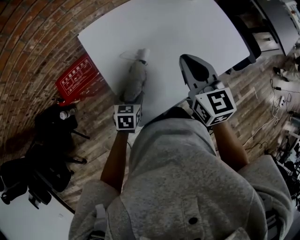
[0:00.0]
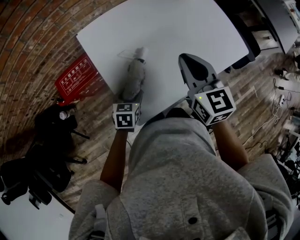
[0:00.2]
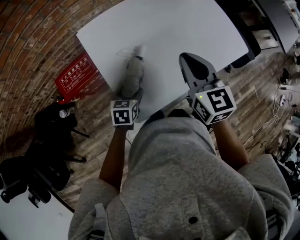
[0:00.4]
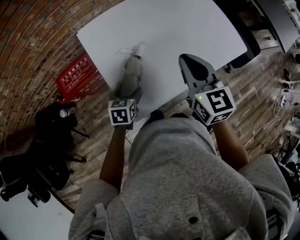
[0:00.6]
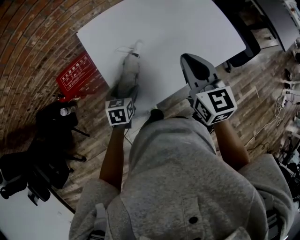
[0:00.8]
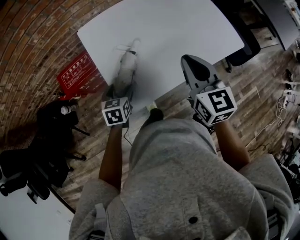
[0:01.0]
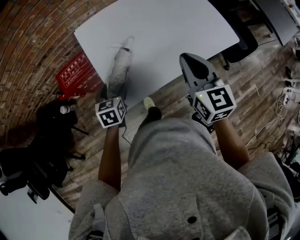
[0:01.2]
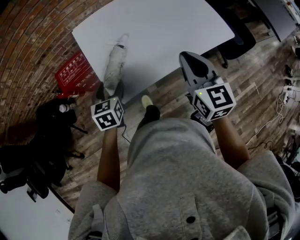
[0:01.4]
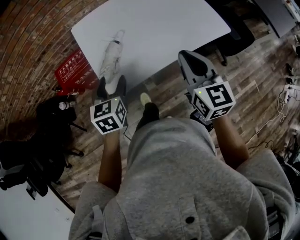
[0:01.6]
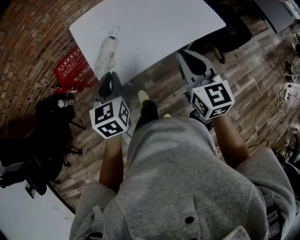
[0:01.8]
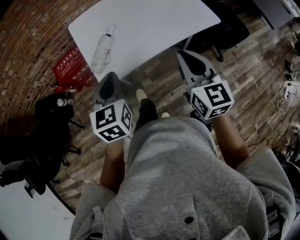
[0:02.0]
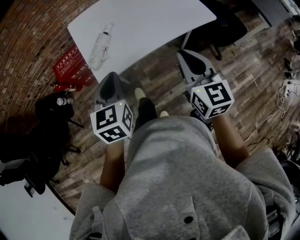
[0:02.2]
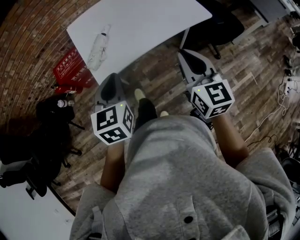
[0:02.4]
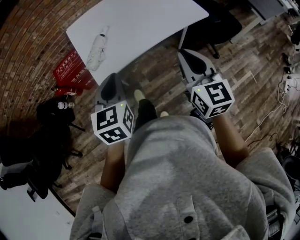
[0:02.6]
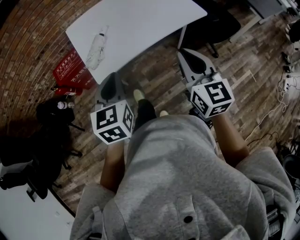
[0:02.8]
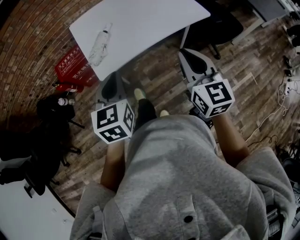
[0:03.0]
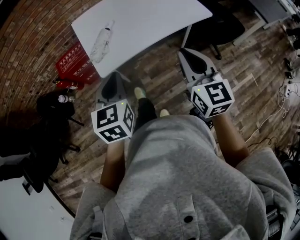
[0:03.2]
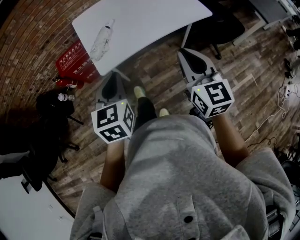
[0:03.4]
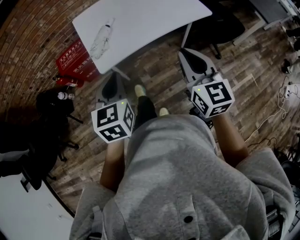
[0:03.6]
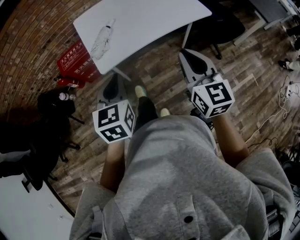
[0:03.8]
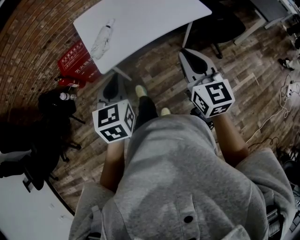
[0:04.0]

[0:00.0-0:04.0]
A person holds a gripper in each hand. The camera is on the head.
0:00.0 to 0:01.4: The left gripper moves upward and backward, some 15 cm, and turns by approximately 20 degrees. Meanwhile the right gripper shifts about 15 cm backward and to the right.
0:01.4 to 0:02.6: The right gripper goes about 20 cm backward and to the right; the left gripper heads backward, upward and to the right, covering approximately 25 cm, and closes up.
0:02.6 to 0:04.0: The right gripper moves some 5 cm; the left gripper moves backward, roughly 5 cm.

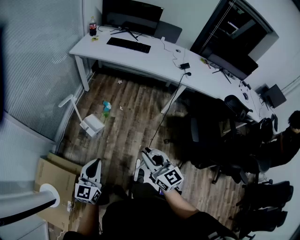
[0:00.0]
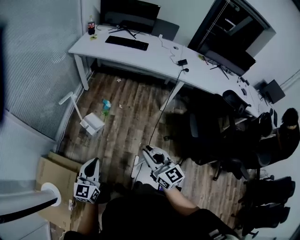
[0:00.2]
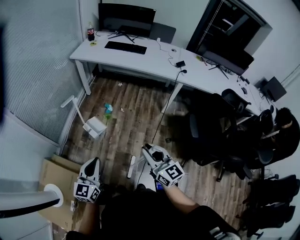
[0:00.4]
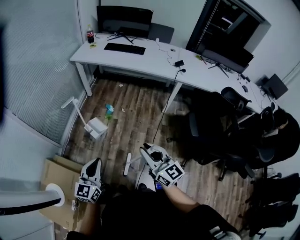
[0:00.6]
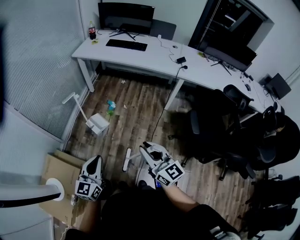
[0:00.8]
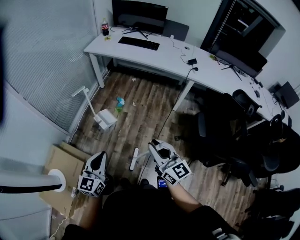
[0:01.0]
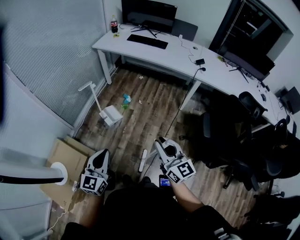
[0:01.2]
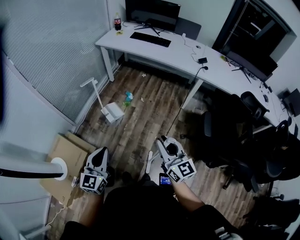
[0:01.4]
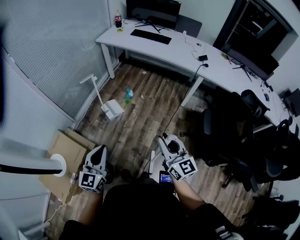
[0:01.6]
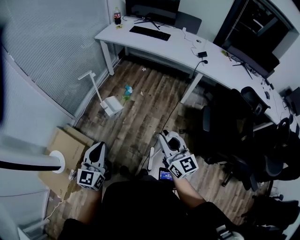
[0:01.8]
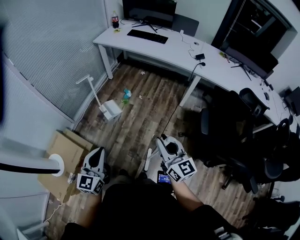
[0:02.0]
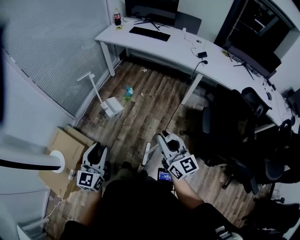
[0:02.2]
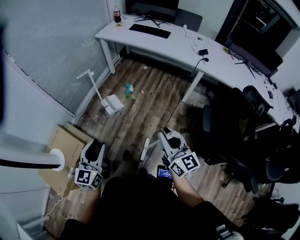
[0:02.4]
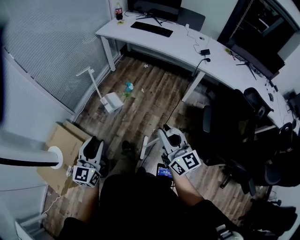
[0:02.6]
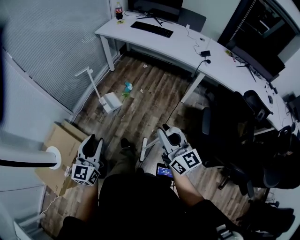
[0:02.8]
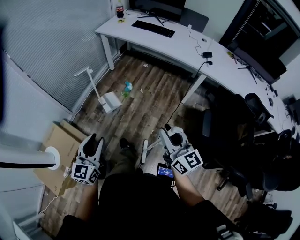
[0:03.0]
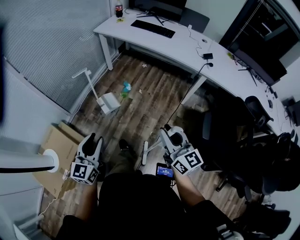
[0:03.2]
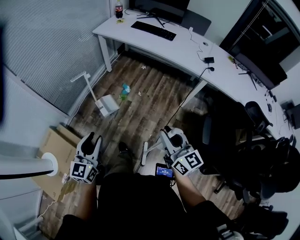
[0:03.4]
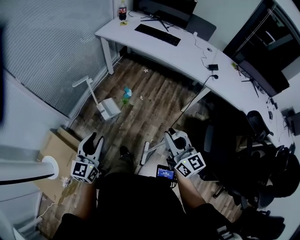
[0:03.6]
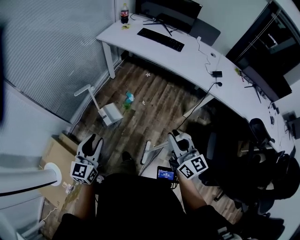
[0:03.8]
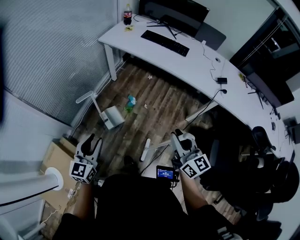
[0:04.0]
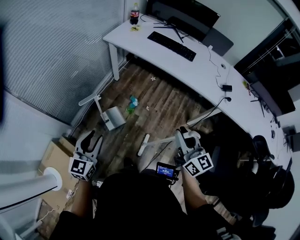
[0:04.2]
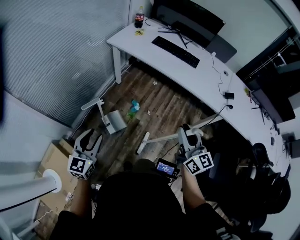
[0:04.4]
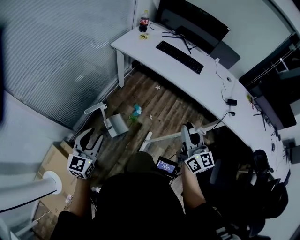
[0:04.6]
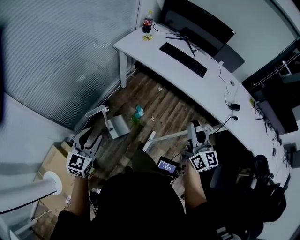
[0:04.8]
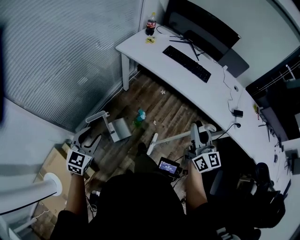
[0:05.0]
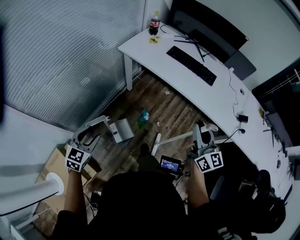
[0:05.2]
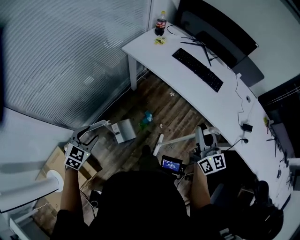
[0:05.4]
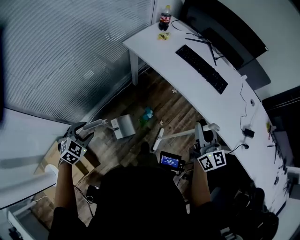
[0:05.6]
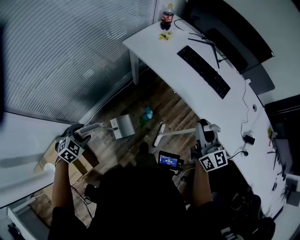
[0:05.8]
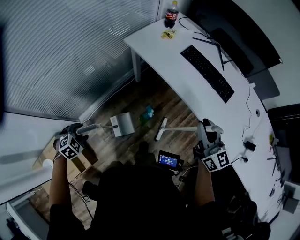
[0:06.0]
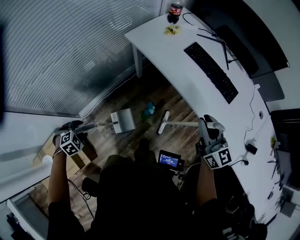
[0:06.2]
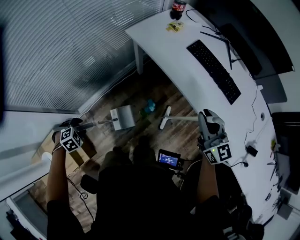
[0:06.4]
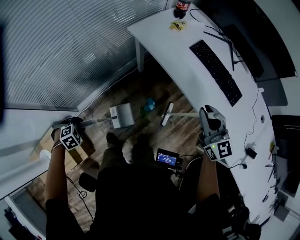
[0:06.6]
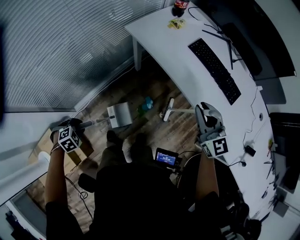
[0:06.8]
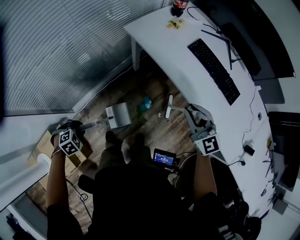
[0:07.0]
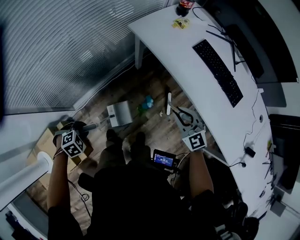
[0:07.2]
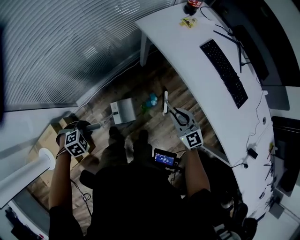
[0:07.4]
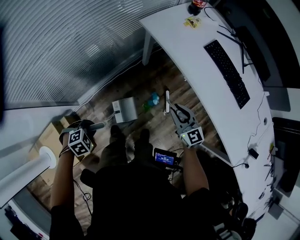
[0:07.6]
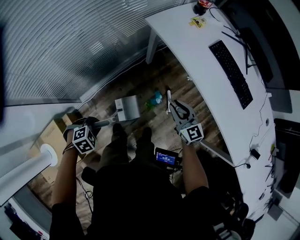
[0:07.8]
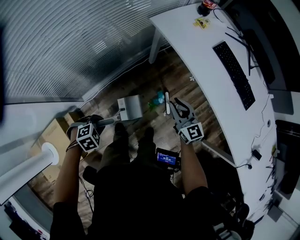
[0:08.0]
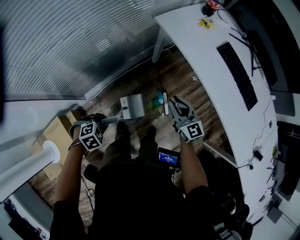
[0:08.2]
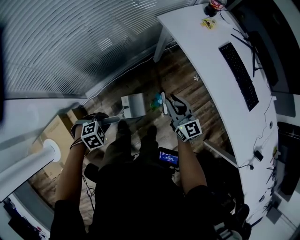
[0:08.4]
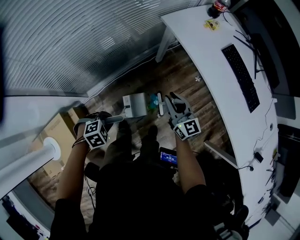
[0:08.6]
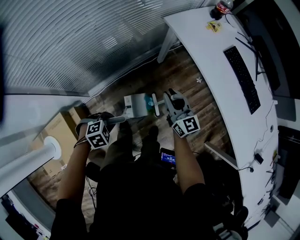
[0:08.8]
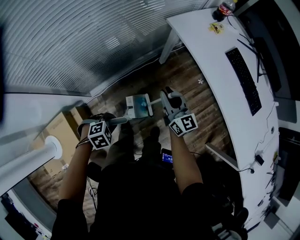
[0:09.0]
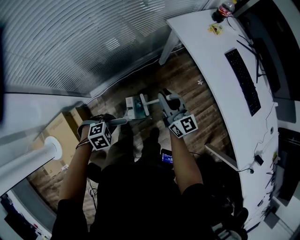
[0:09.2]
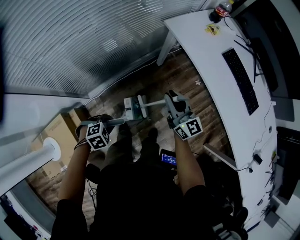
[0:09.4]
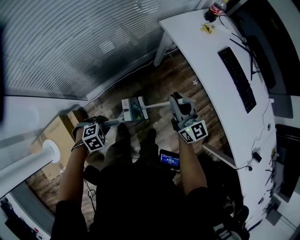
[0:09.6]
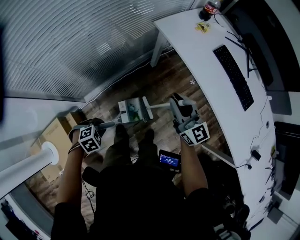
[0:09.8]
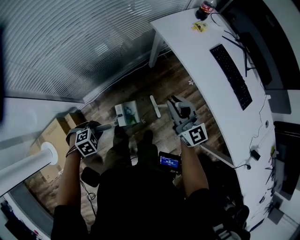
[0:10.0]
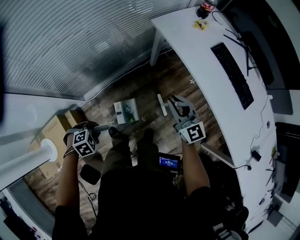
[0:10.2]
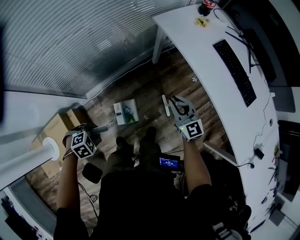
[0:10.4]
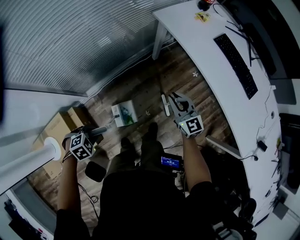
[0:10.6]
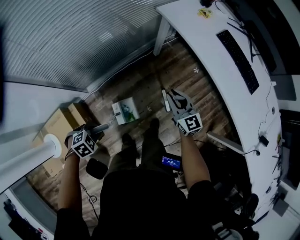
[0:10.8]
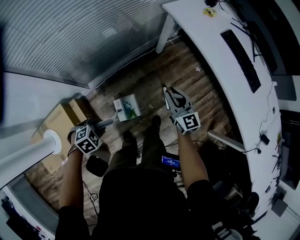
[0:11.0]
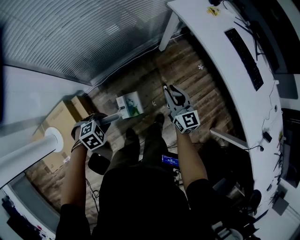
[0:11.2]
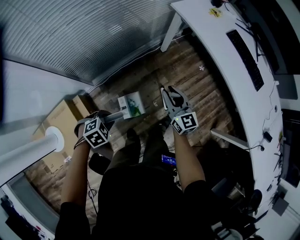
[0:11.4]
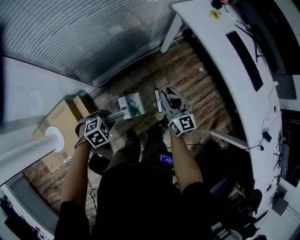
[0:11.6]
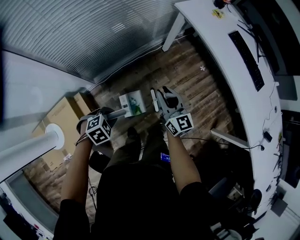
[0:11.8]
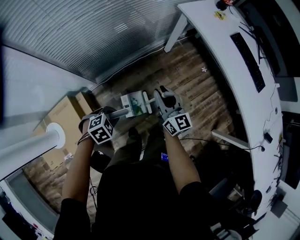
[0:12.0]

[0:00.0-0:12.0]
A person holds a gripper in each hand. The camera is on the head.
0:00.0 to 0:01.6: The right gripper is displaced to the right and backward by roughly 10 cm, while the left gripper goes roughly 15 cm backward and upward.
0:01.6 to 0:03.0: The right gripper travels forward by approximately 5 cm; the left gripper ends up approximately 5 cm from where it was, and opens its fingers.
0:03.0 to 0:04.4: The two grippers go approximately 35 cm forward.
0:04.4 to 0:06.0: The left gripper moves forward, downward and to the left, about 25 cm, and tips its fingers downward by about 60 degrees. The right gripper moves forward, roughly 35 cm.
0:06.0 to 0:07.6: The left gripper is displaced downward by some 5 cm, and closes up, while the right gripper goes about 20 cm downward, and swivels roughly 30 degrees.
0:07.6 to 0:09.0: The right gripper shifts by approximately 15 cm, and turns by some 20 degrees.
0:09.0 to 0:10.4: The right gripper goes upward and returns, approximately 10 cm each way, and changes its angle by some 20 degrees. The left gripper ends up about 10 cm from where it was.
0:10.4 to 0:12.0: The right gripper changes place by about 20 cm, and turns by approximately 20 degrees. The left gripper moves approximately 5 cm.

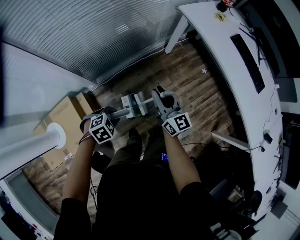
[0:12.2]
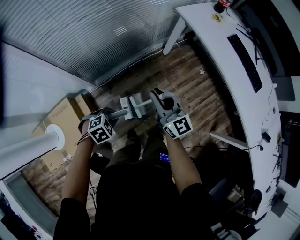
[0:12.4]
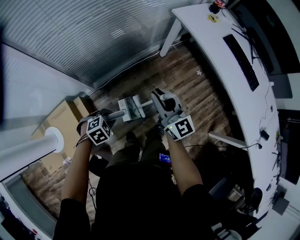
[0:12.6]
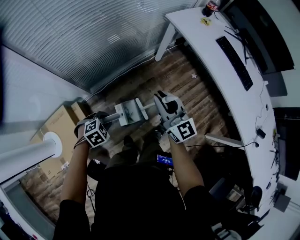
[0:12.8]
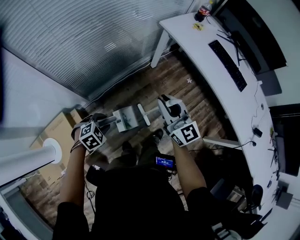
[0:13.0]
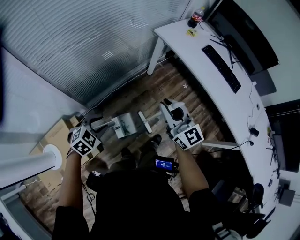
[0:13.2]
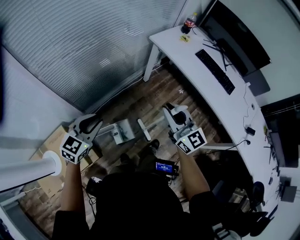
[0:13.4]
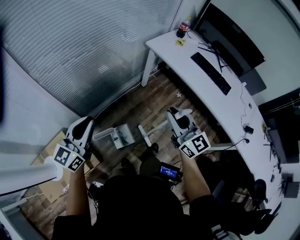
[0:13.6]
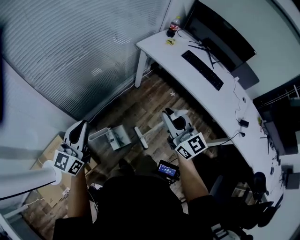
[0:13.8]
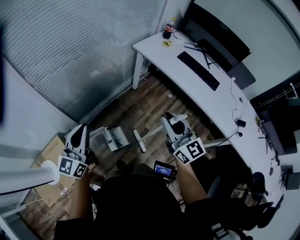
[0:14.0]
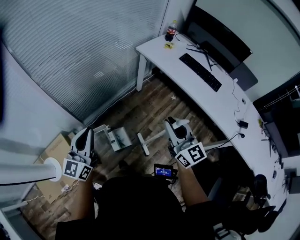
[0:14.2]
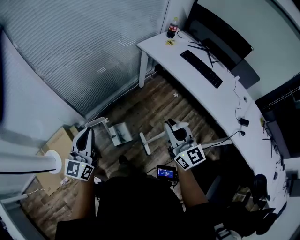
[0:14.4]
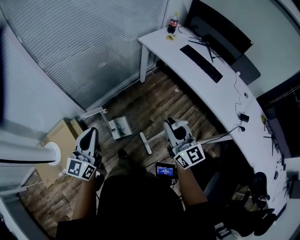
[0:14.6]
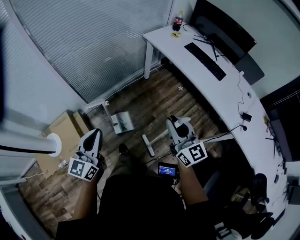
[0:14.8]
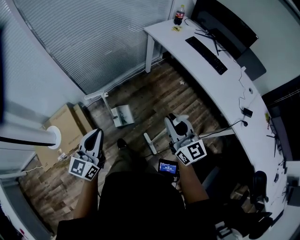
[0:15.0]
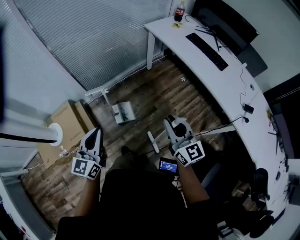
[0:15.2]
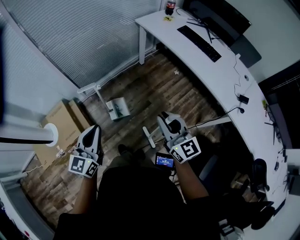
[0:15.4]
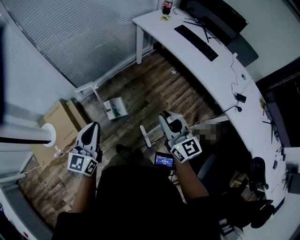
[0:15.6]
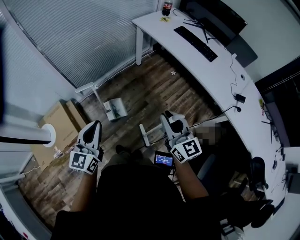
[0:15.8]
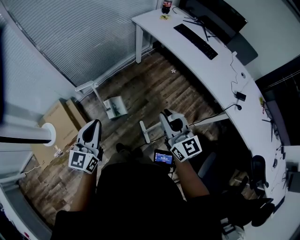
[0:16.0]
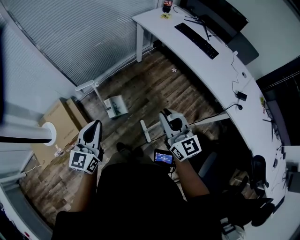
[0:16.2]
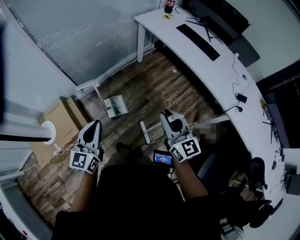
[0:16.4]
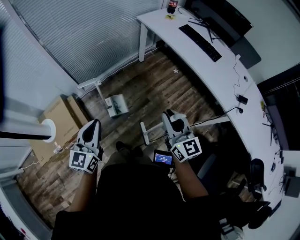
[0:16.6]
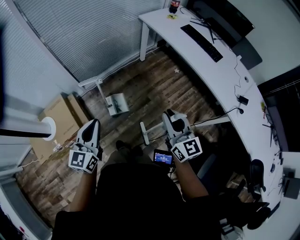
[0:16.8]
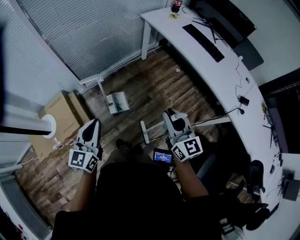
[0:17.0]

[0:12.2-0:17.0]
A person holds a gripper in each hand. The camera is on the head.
0:12.2 to 0:13.8: The left gripper moves upward, approximately 30 cm, points its fingers about 70 degrees further upward, and opens, then closes again. The right gripper travels upward, to the right and backward by approximately 25 cm.
0:13.8 to 0:15.4: The left gripper shifts about 30 cm backward and to the right, while the right gripper heads backward, covering approximately 25 cm.
0:15.4 to 0:17.0: The grippers make only small movements.

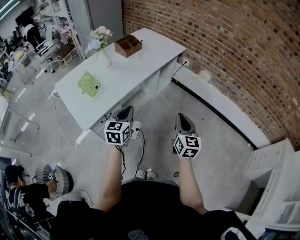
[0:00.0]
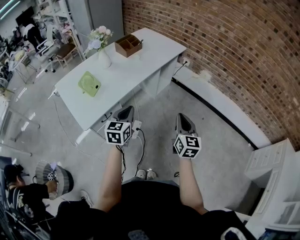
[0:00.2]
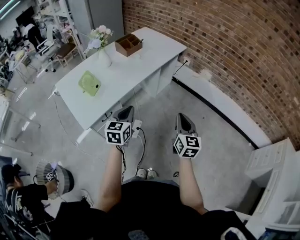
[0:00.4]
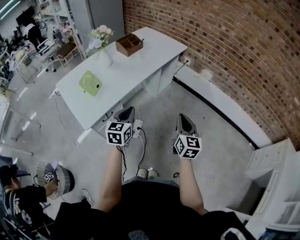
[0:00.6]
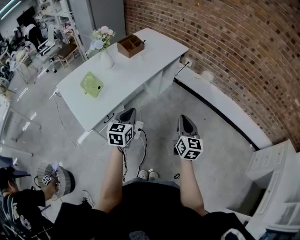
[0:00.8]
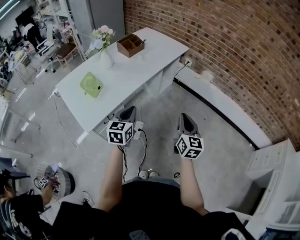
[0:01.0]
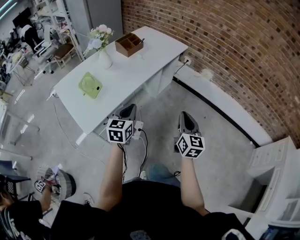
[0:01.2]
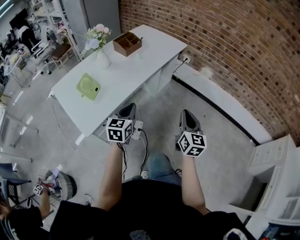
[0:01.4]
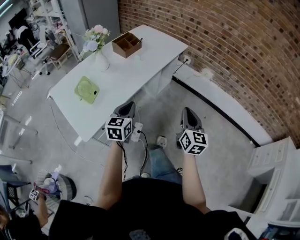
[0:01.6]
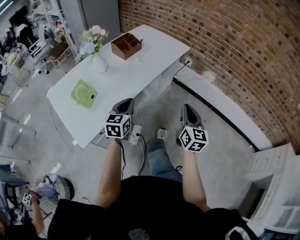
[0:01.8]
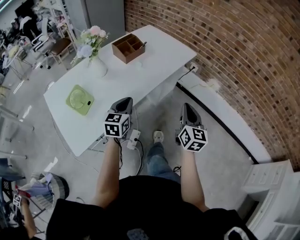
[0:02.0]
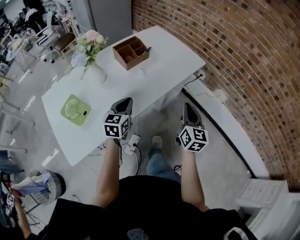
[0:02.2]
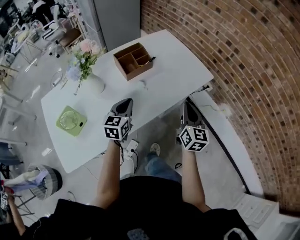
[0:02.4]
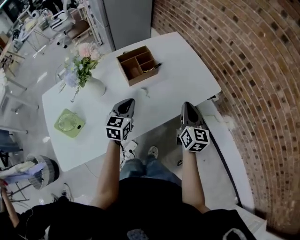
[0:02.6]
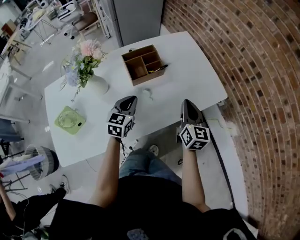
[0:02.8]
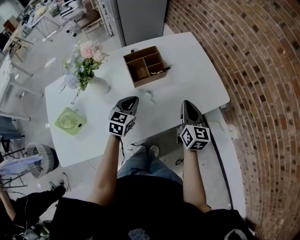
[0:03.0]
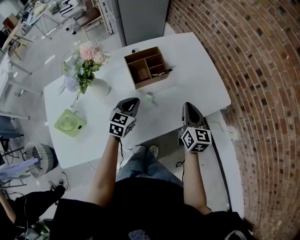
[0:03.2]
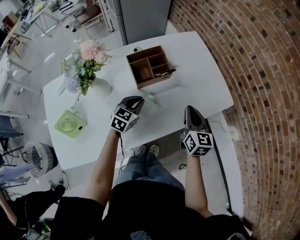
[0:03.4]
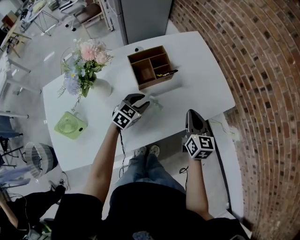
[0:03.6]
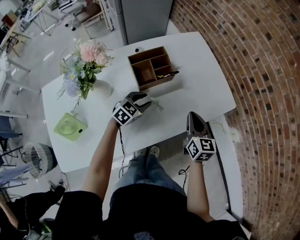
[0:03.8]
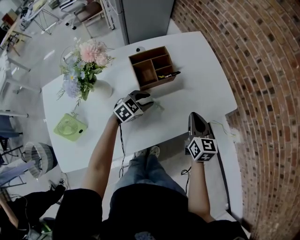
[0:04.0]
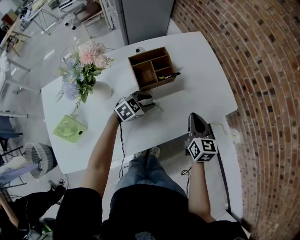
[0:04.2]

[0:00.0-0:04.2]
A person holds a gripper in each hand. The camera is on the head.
0:00.0 to 0:01.4: The left gripper changes place by roughly 5 cm.
0:01.4 to 0:02.8: Both grippers are carried roughly 60 cm. The right gripper turns by about 30 degrees; the left gripper rotates approximately 20 degrees.
0:02.8 to 0:04.2: The right gripper shifts roughly 5 cm downward, while the left gripper travels downward and forward by about 15 cm, changes its angle by approximately 40 degrees, and opens.
